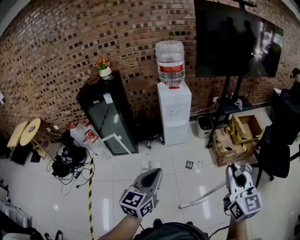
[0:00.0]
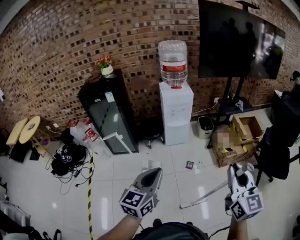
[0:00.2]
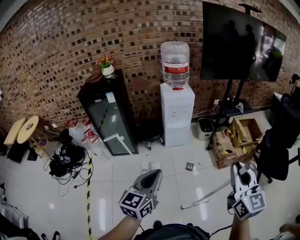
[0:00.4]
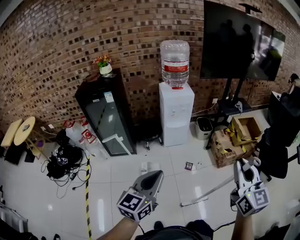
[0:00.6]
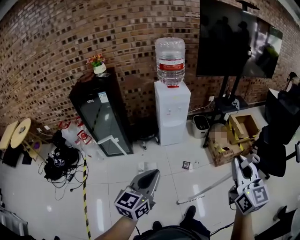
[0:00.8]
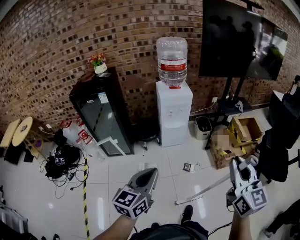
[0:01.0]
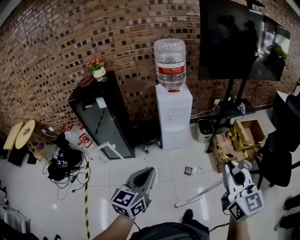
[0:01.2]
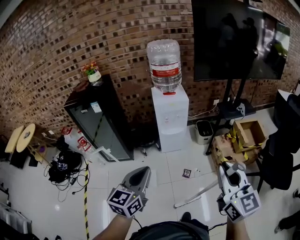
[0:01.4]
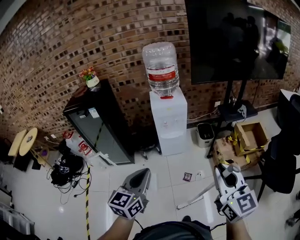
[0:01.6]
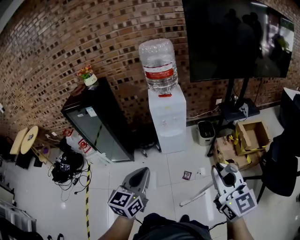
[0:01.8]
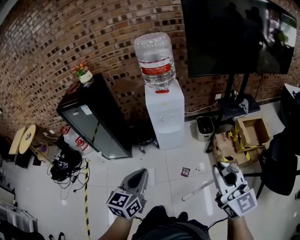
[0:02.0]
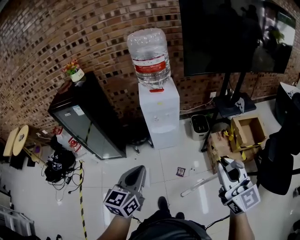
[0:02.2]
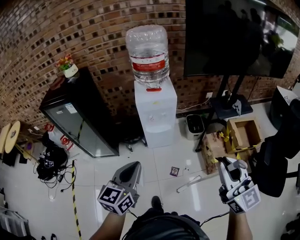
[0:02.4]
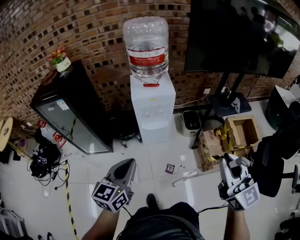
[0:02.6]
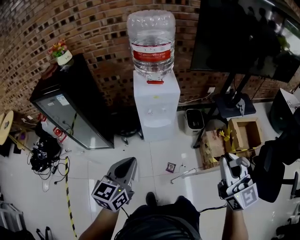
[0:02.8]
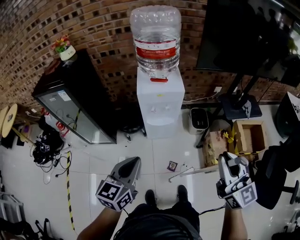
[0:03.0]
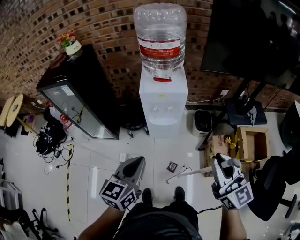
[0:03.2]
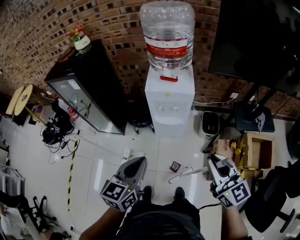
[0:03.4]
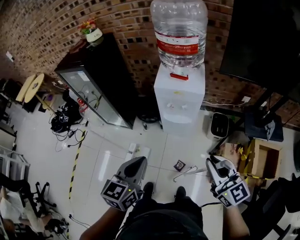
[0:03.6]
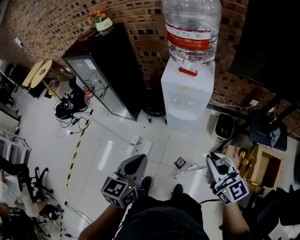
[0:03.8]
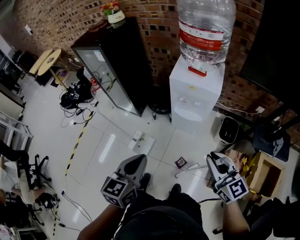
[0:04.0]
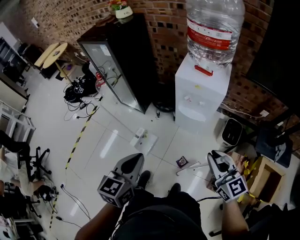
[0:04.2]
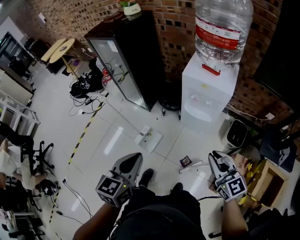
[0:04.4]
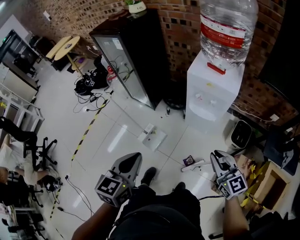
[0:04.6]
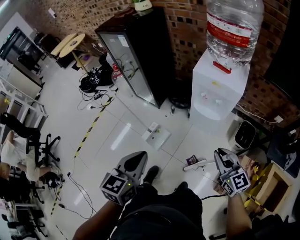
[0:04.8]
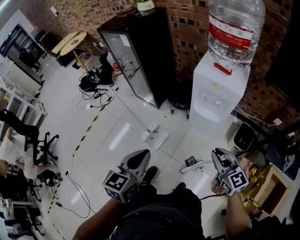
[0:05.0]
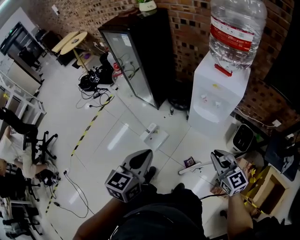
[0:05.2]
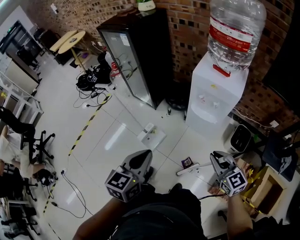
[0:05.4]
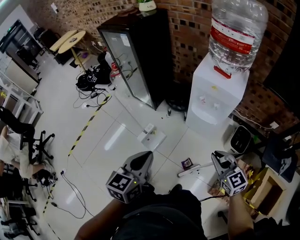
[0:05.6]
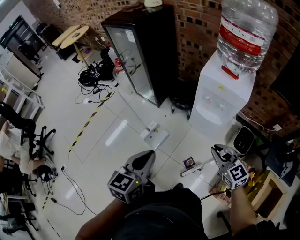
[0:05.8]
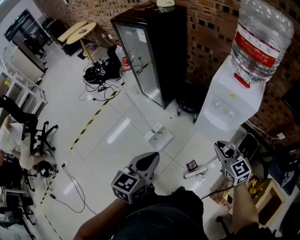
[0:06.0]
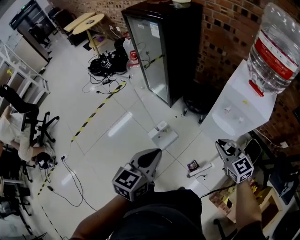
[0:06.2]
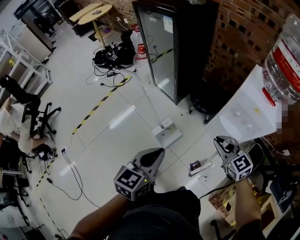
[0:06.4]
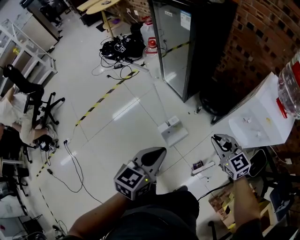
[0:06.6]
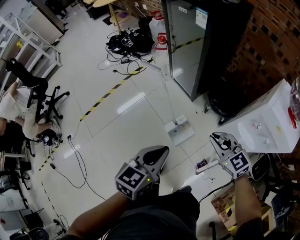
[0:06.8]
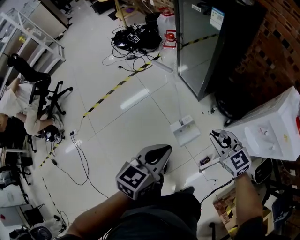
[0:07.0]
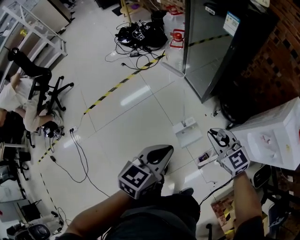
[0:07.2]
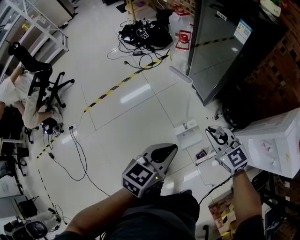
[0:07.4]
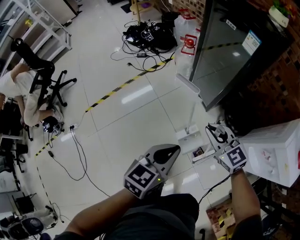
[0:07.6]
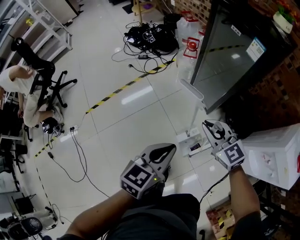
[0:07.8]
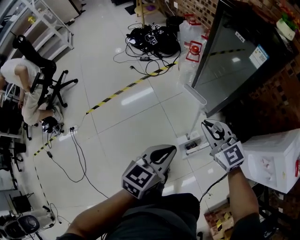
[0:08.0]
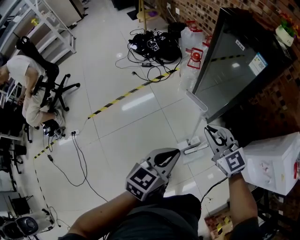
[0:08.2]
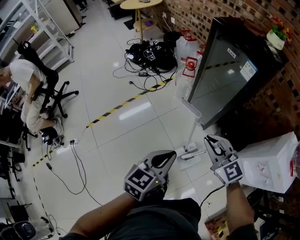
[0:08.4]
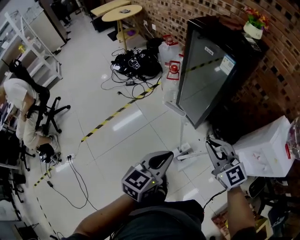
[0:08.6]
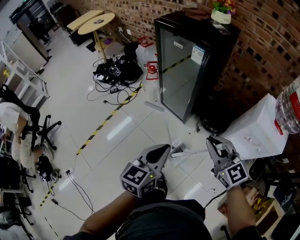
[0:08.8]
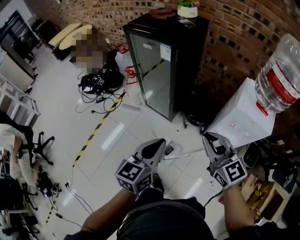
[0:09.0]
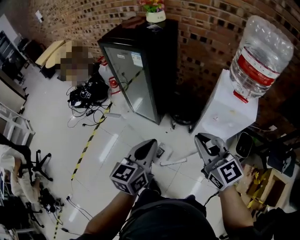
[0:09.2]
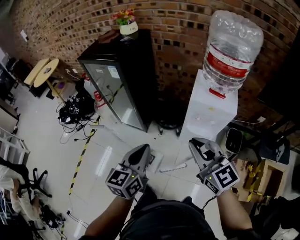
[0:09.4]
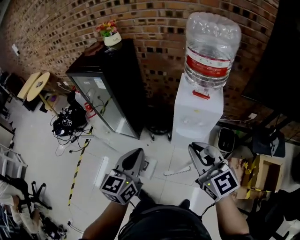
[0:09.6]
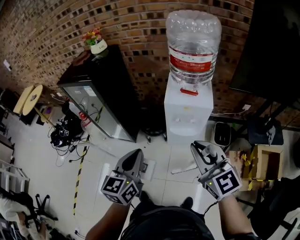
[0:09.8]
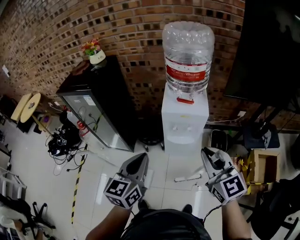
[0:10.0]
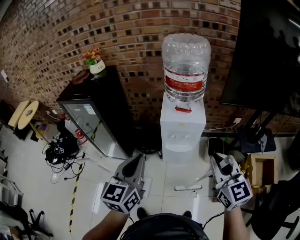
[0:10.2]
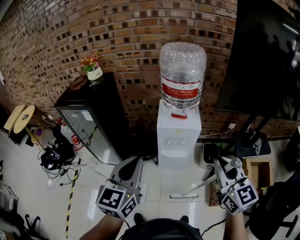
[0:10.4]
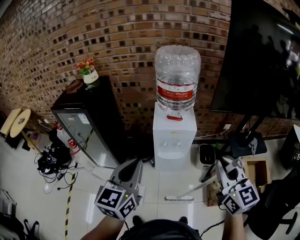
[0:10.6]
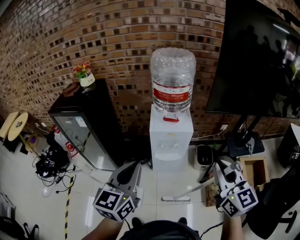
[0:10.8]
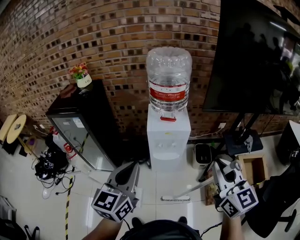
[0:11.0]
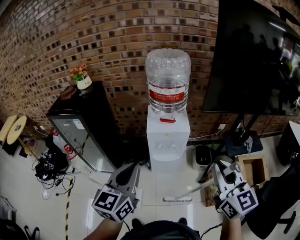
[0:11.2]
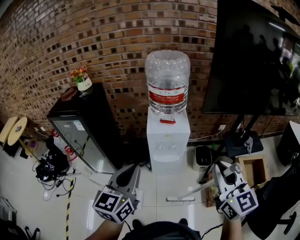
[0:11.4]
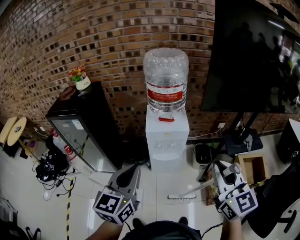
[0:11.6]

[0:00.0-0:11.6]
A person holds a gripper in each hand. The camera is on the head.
0:00.0 to 0:01.4: The grippers both shift forward by about 20 cm.
0:01.4 to 0:02.8: The grippers both shift forward by roughly 30 cm.
0:02.8 to 0:04.4: The left gripper ends up about 10 cm from where it was, and swivels roughly 40 degrees, while the right gripper moves downward, about 25 cm, and rotates about 40 degrees.
0:04.4 to 0:05.8: The right gripper moves downward and forward, some 10 cm.
0:05.8 to 0:07.2: Both grippers travel together to the left and forward, about 40 cm. The right gripper changes its angle by some 30 degrees.
0:07.2 to 0:08.8: The right gripper moves upward, approximately 20 cm, and rotates roughly 30 degrees; the left gripper goes roughly 15 cm upward and forward.
0:08.8 to 0:10.2: The left gripper moves roughly 35 cm, and turns by approximately 30 degrees. The right gripper changes place by some 50 cm, and changes its angle by approximately 50 degrees.
0:10.2 to 0:11.6: The right gripper travels upward and backward by some 10 cm, while the left gripper is displaced upward by roughly 5 cm.

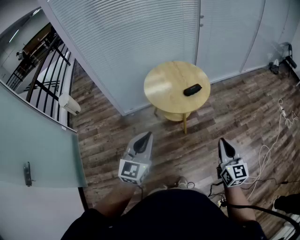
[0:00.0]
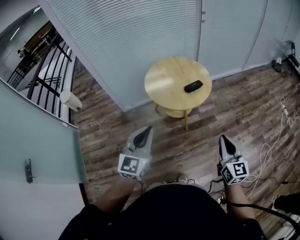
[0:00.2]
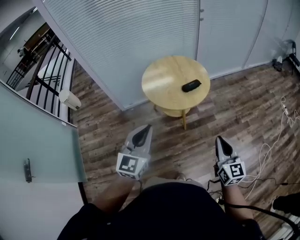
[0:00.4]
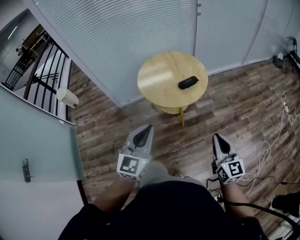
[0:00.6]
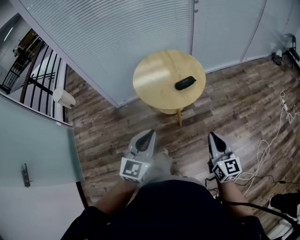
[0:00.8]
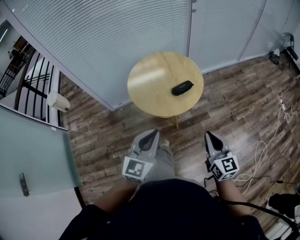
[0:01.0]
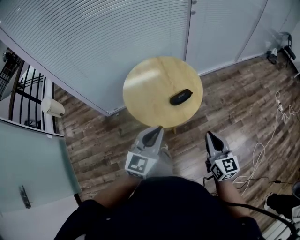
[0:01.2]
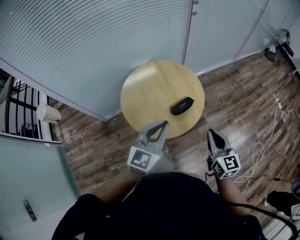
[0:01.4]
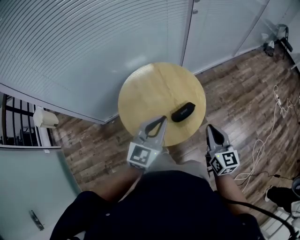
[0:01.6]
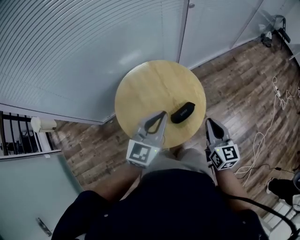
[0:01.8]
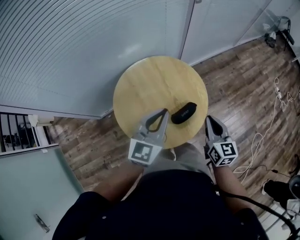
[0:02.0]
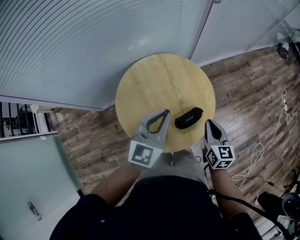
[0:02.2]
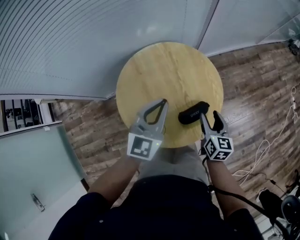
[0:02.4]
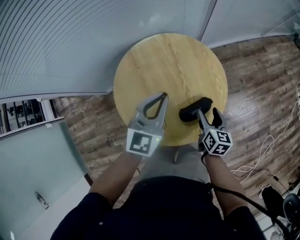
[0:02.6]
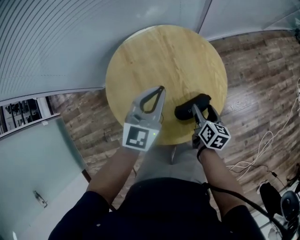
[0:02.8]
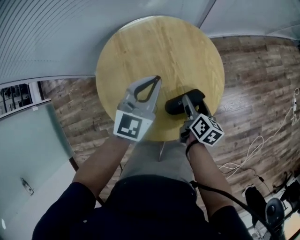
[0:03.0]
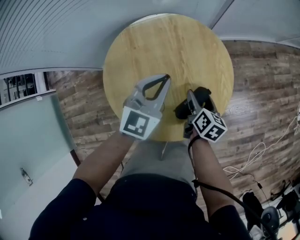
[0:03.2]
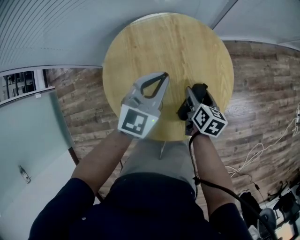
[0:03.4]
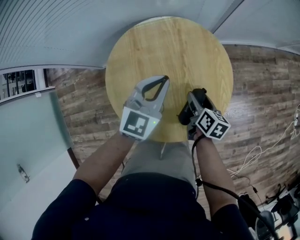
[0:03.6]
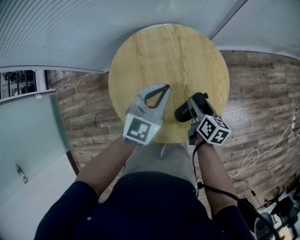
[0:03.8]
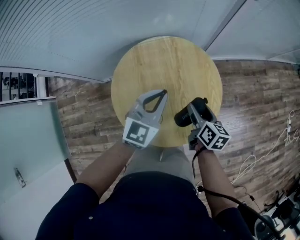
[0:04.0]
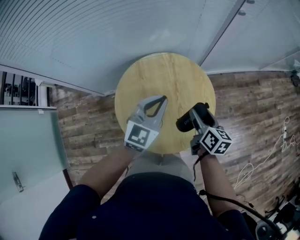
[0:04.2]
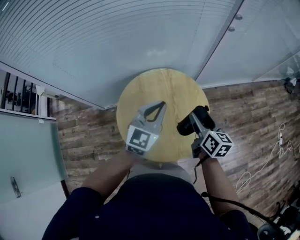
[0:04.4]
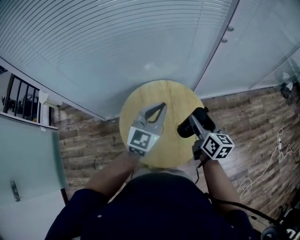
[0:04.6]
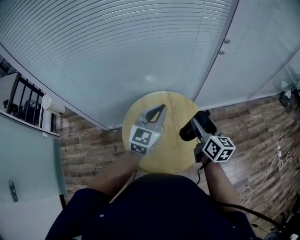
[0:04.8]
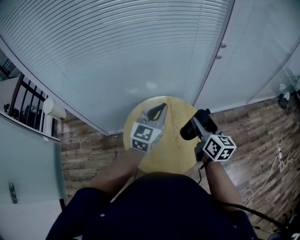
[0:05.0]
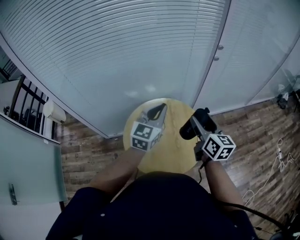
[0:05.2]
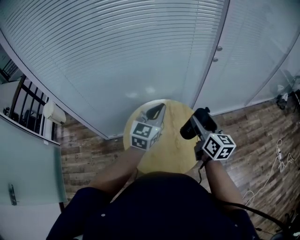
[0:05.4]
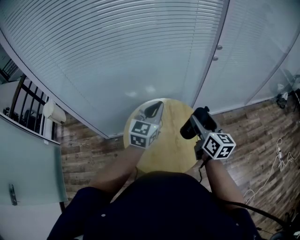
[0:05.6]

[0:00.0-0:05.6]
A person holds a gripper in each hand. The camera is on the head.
0:00.0 to 0:01.4: Both grippers move forward, approximately 35 cm.
0:01.4 to 0:02.8: The left gripper heads forward and downward, covering about 30 cm. Meanwhile the right gripper travels downward and forward by roughly 35 cm, changes its angle by approximately 40 degrees, and opens its fingers.
0:02.8 to 0:04.2: The left gripper goes some 10 cm upward. Meanwhile the right gripper moves upward, approximately 15 cm.
0:04.2 to 0:05.6: The right gripper heads upward, covering some 20 cm, and turns by approximately 30 degrees. The left gripper travels upward by approximately 15 cm.

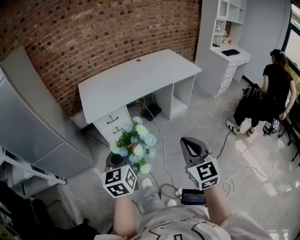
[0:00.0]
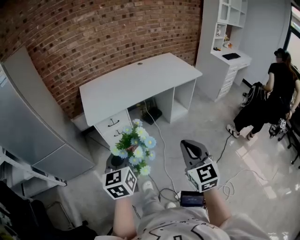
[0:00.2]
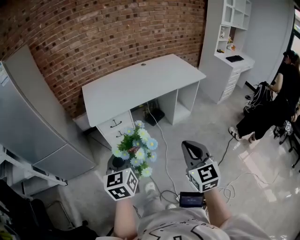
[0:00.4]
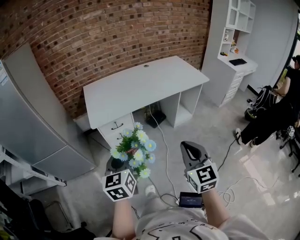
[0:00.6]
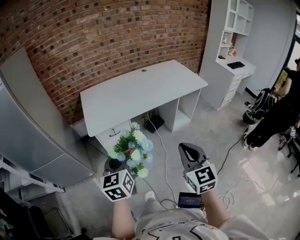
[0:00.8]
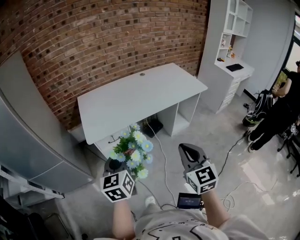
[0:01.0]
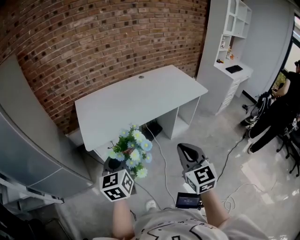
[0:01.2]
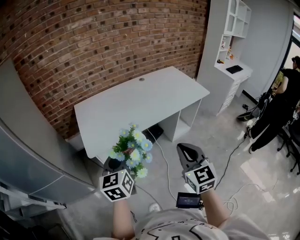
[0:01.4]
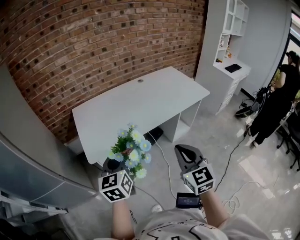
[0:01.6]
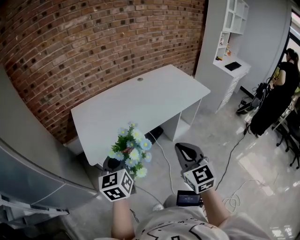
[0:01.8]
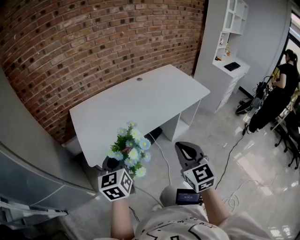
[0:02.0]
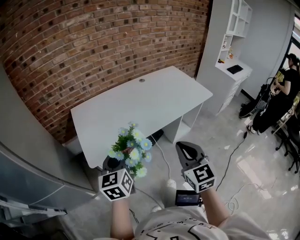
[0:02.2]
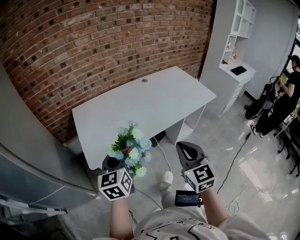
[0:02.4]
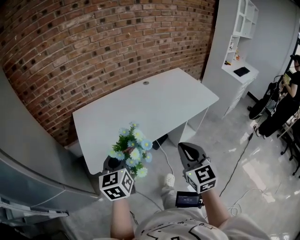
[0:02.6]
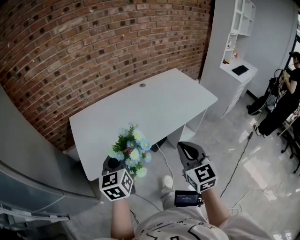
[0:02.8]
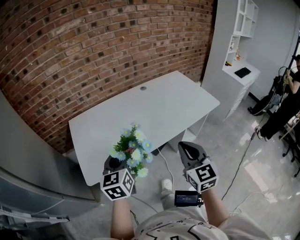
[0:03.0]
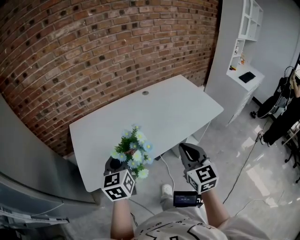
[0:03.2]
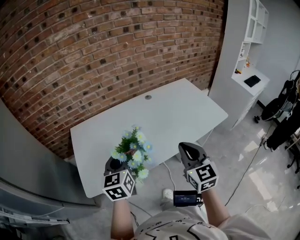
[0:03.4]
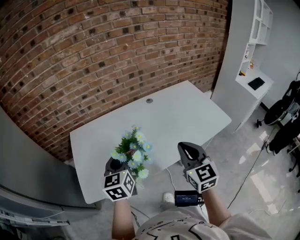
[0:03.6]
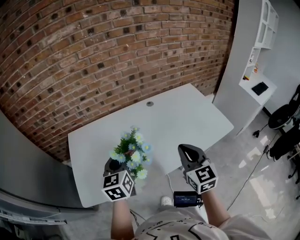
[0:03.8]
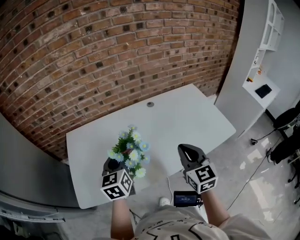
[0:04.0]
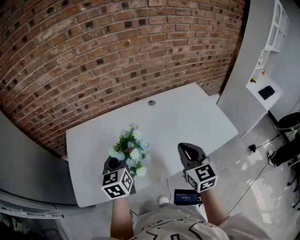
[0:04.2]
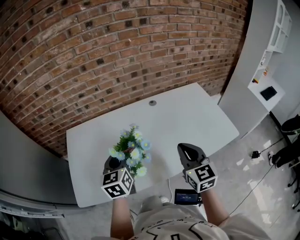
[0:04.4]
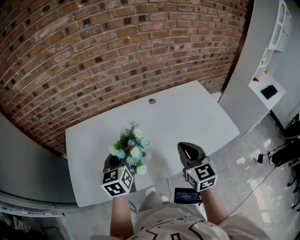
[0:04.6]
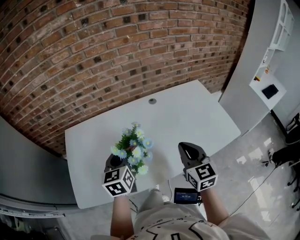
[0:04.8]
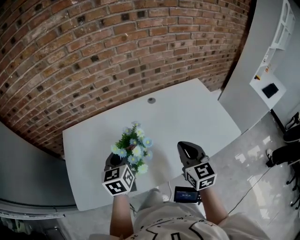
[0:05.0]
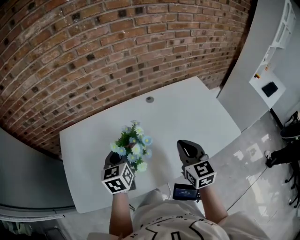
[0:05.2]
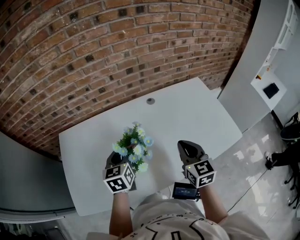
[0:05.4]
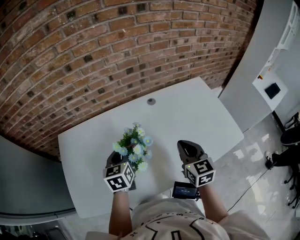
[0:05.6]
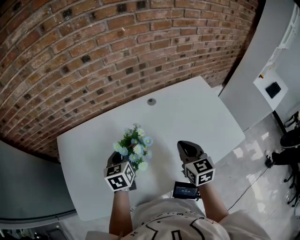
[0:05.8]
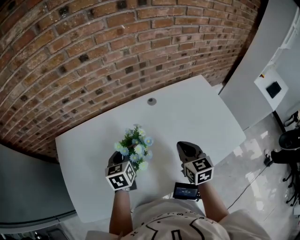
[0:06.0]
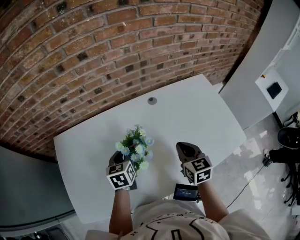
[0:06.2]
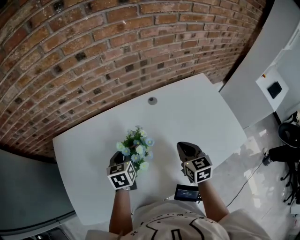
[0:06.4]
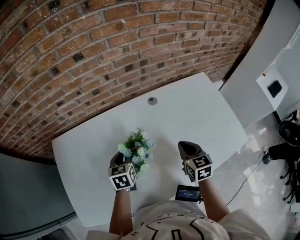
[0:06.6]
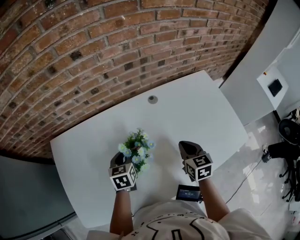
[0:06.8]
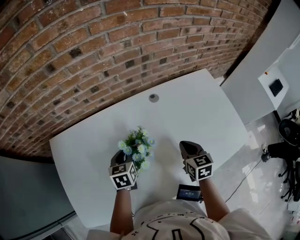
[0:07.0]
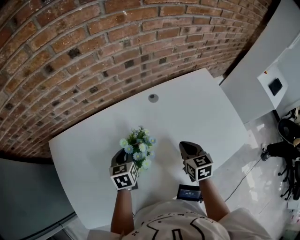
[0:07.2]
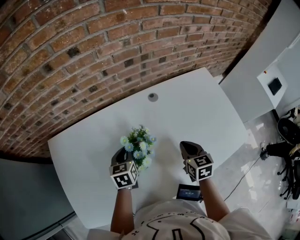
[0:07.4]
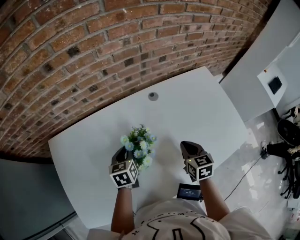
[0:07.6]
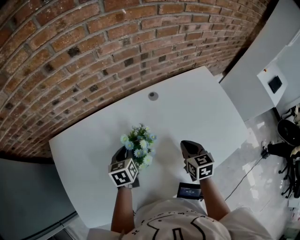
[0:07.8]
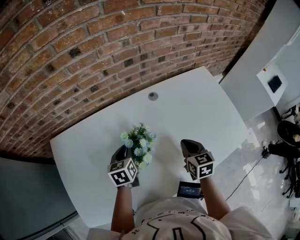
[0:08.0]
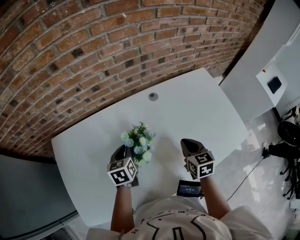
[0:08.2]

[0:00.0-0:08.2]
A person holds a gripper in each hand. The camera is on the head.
0:00.0 to 0:01.6: Both grippers travel together forward, approximately 25 cm.
0:01.6 to 0:03.2: The grippers both shift forward by roughly 20 cm.
0:03.2 to 0:05.0: The two grippers go roughly 25 cm forward.
0:05.0 to 0:06.6: The right gripper goes roughly 20 cm forward and downward, while the left gripper shifts approximately 20 cm downward and forward.
0:06.6 to 0:08.2: The grippers move only a little.
